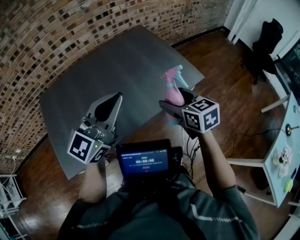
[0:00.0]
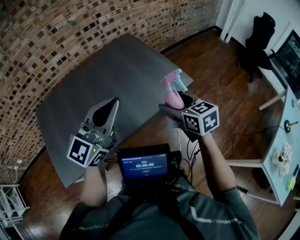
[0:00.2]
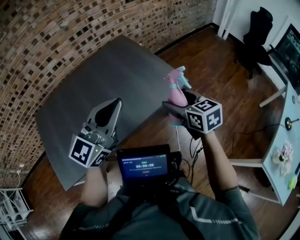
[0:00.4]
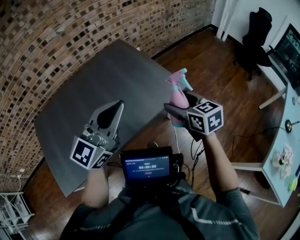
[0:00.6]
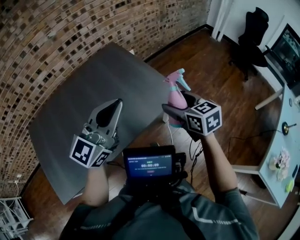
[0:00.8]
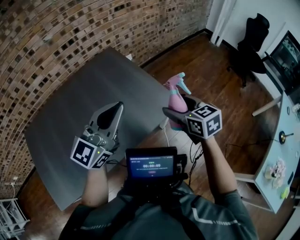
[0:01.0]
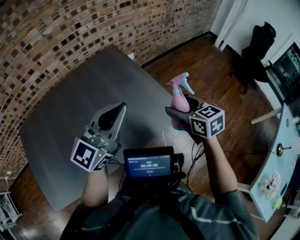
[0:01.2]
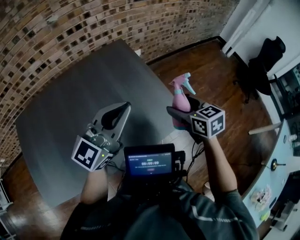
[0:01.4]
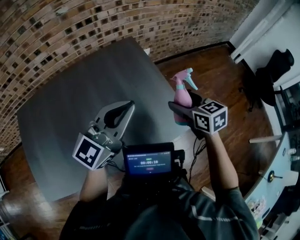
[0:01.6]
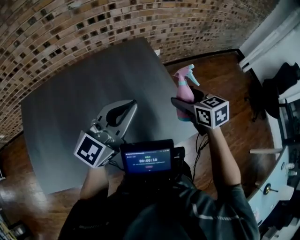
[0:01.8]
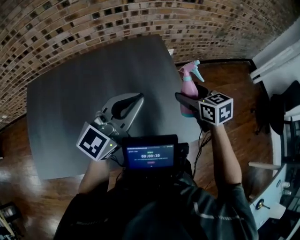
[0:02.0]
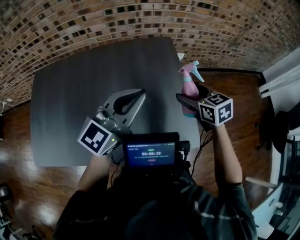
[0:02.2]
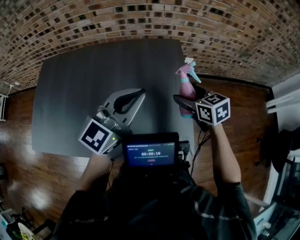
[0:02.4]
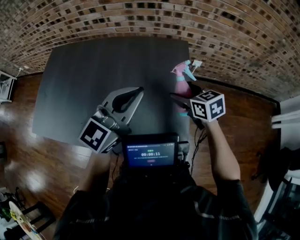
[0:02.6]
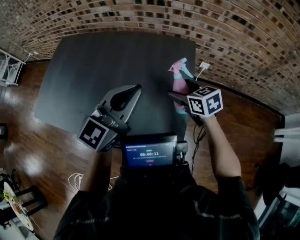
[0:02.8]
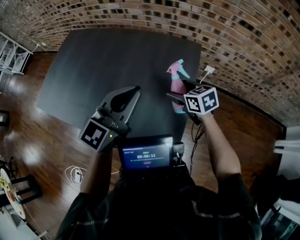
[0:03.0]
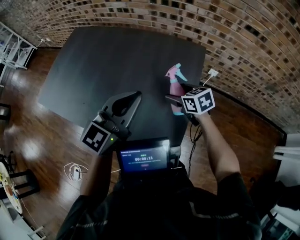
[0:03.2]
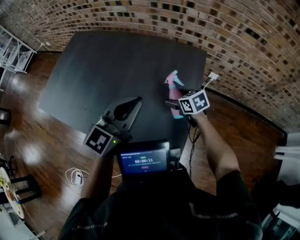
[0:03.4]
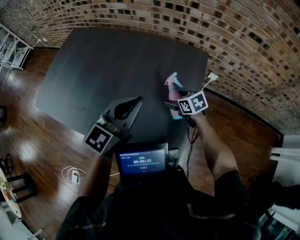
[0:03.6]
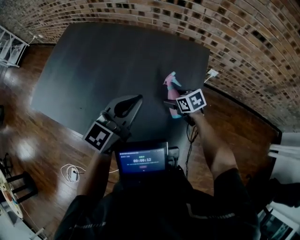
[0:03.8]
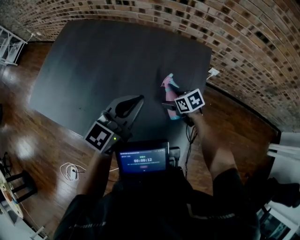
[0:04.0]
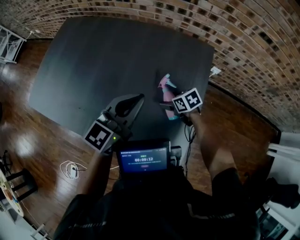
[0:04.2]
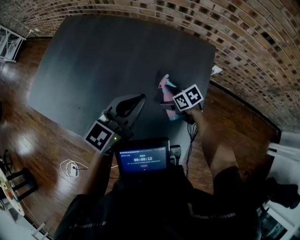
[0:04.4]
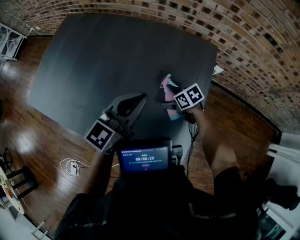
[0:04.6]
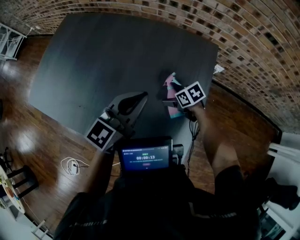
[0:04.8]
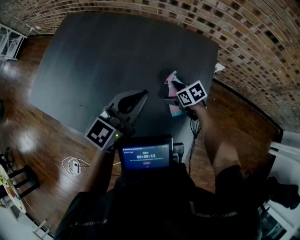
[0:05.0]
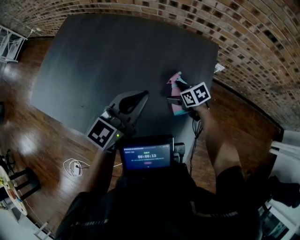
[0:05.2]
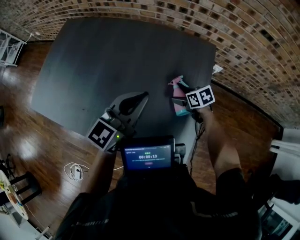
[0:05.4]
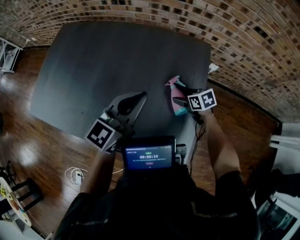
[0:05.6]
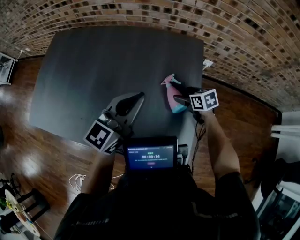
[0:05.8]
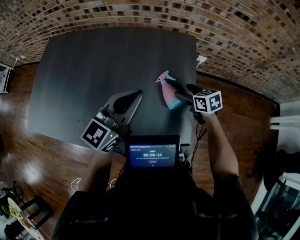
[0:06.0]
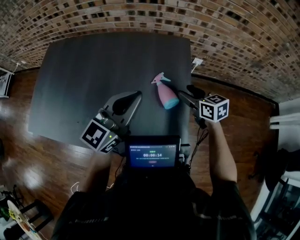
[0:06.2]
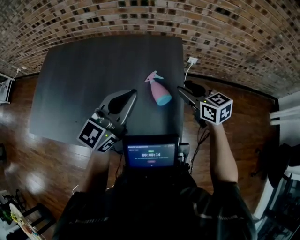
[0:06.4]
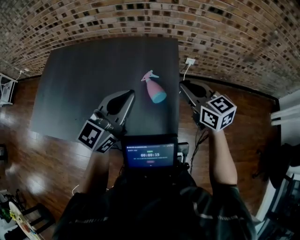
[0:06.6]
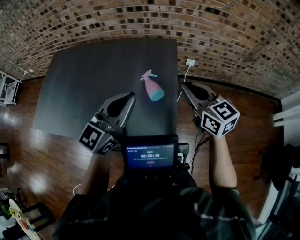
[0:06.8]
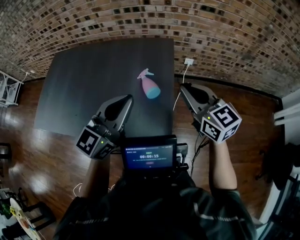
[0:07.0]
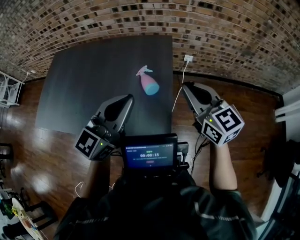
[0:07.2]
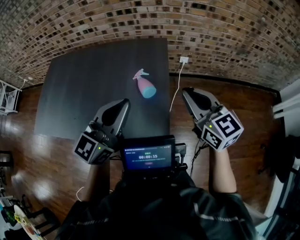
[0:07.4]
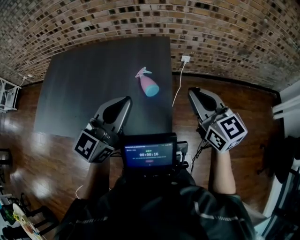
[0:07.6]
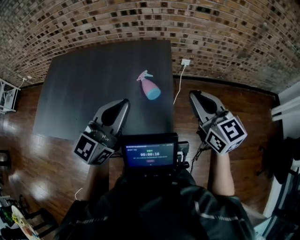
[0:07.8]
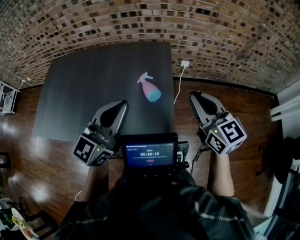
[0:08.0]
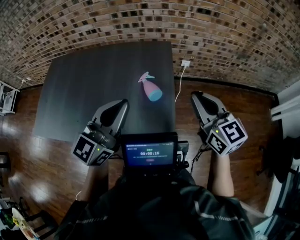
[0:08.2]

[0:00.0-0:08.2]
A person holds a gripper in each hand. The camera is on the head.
0:00.0 to 0:01.6: The two grippers go approximately 30 cm forward.
0:01.6 to 0:03.2: The right gripper shifts by approximately 20 cm, and swivels some 50 degrees. Meanwhile the left gripper shifts by approximately 10 cm, and changes its angle by roughly 50 degrees.
0:03.2 to 0:05.0: The left gripper ends up some 10 cm from where it was. Meanwhile the right gripper heads downward, covering some 15 cm, and turns by some 20 degrees.
0:05.0 to 0:06.6: The right gripper shifts some 30 cm upward, points its fingers about 40 degrees further upward, and closes its fingers. Meanwhile the left gripper ends up roughly 15 cm from where it was.
0:06.6 to 0:08.2: The right gripper moves backward and upward, about 15 cm. The left gripper shifts approximately 10 cm backward.

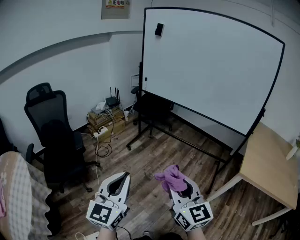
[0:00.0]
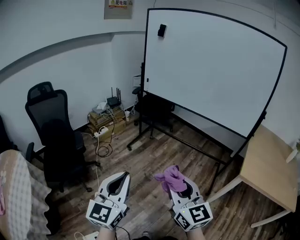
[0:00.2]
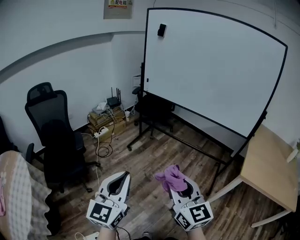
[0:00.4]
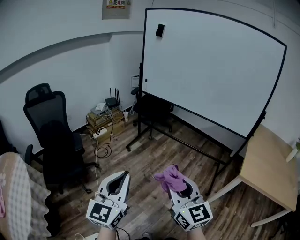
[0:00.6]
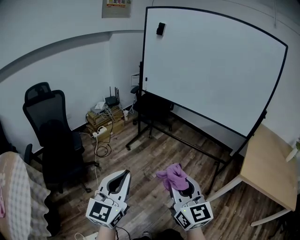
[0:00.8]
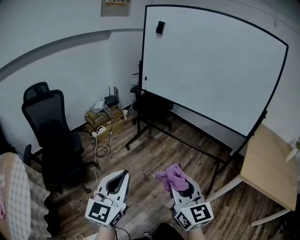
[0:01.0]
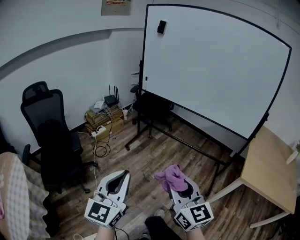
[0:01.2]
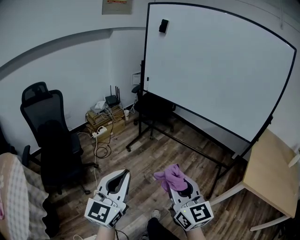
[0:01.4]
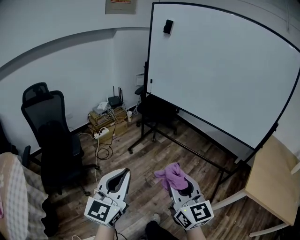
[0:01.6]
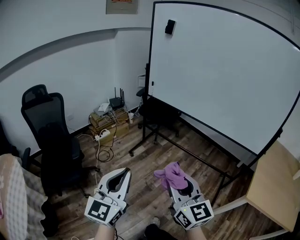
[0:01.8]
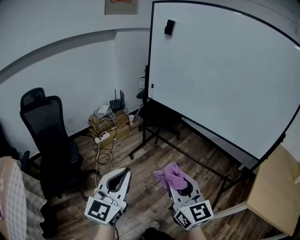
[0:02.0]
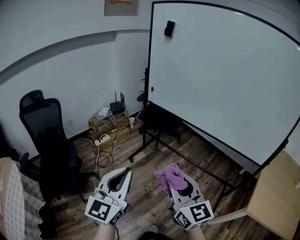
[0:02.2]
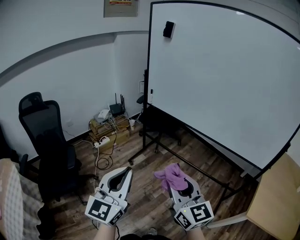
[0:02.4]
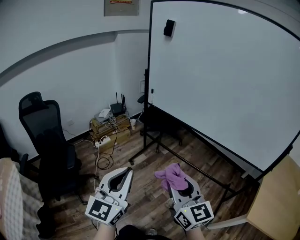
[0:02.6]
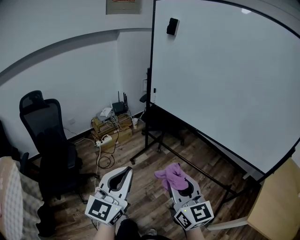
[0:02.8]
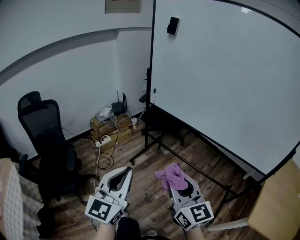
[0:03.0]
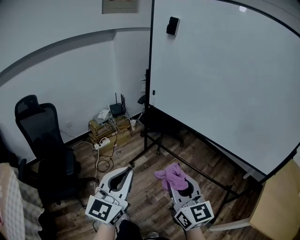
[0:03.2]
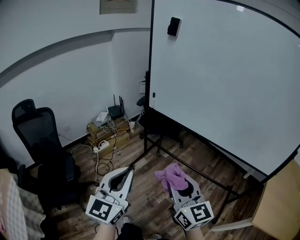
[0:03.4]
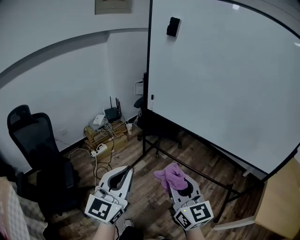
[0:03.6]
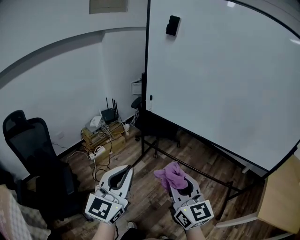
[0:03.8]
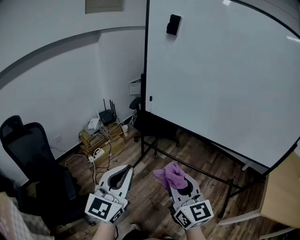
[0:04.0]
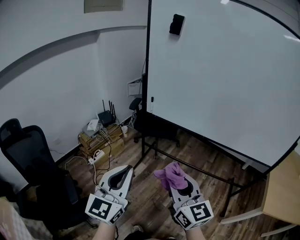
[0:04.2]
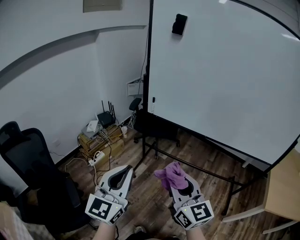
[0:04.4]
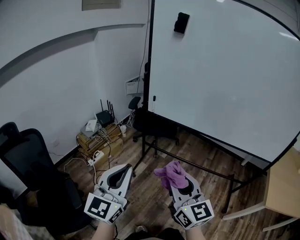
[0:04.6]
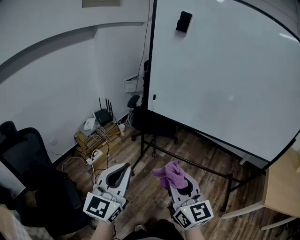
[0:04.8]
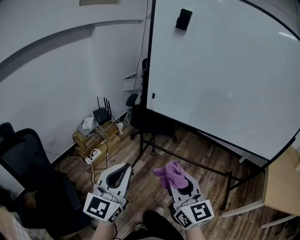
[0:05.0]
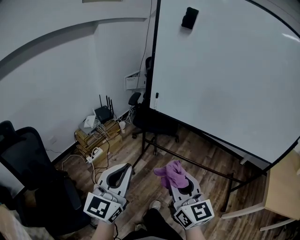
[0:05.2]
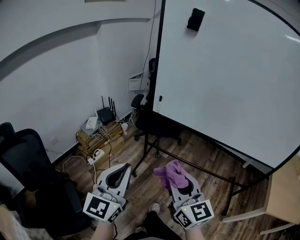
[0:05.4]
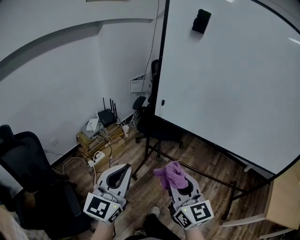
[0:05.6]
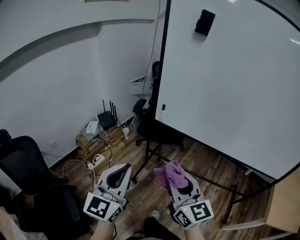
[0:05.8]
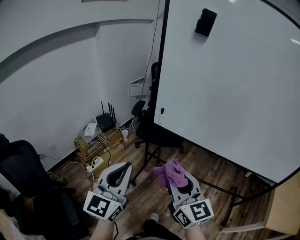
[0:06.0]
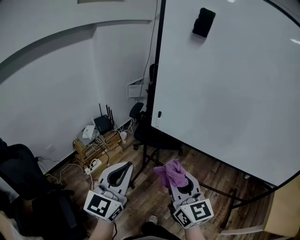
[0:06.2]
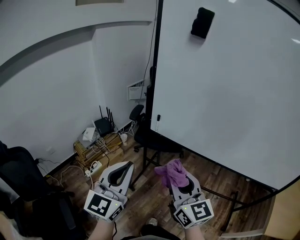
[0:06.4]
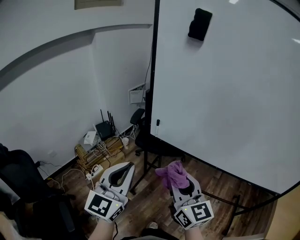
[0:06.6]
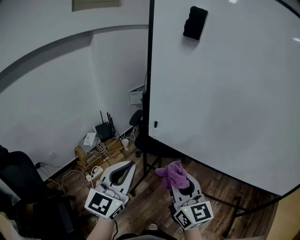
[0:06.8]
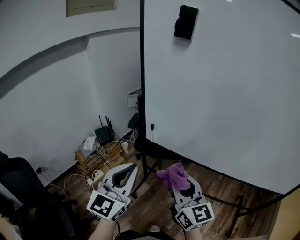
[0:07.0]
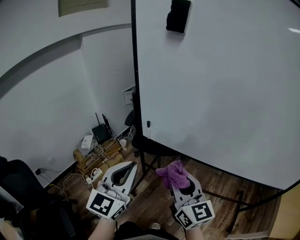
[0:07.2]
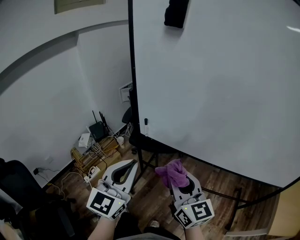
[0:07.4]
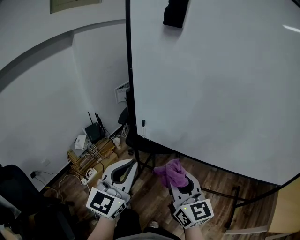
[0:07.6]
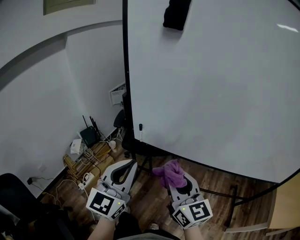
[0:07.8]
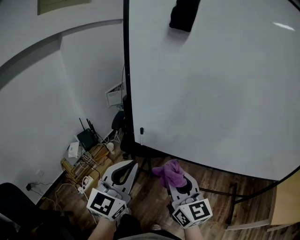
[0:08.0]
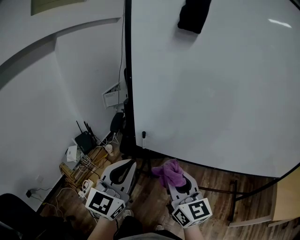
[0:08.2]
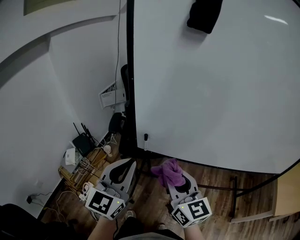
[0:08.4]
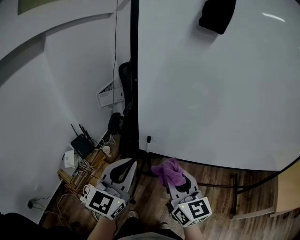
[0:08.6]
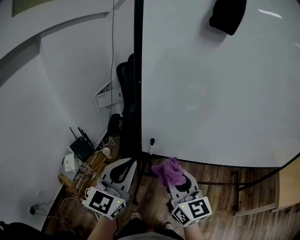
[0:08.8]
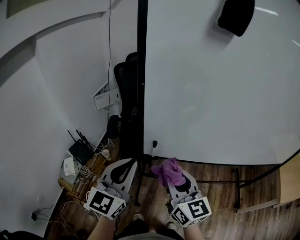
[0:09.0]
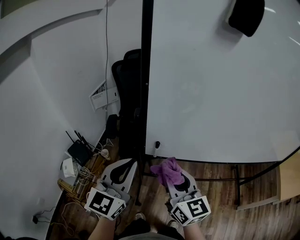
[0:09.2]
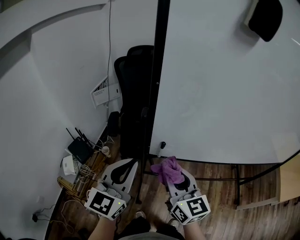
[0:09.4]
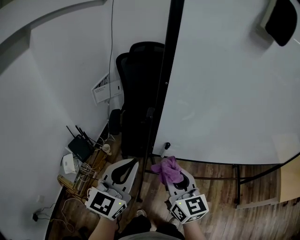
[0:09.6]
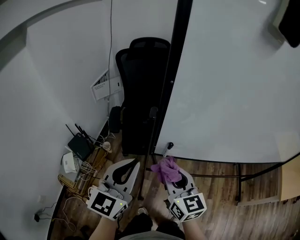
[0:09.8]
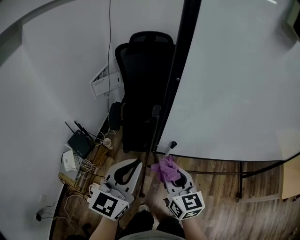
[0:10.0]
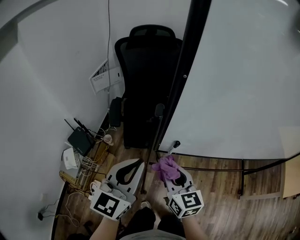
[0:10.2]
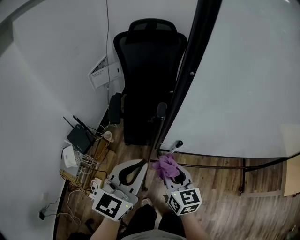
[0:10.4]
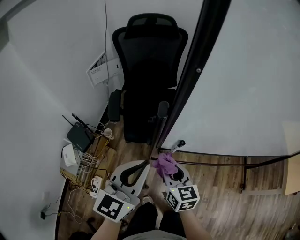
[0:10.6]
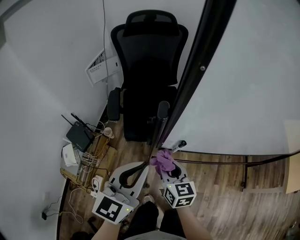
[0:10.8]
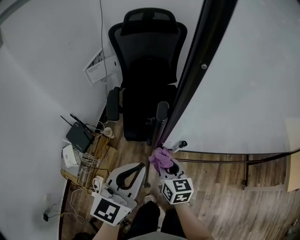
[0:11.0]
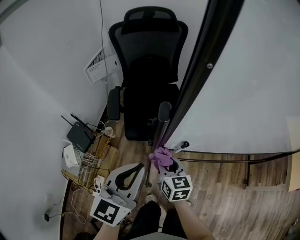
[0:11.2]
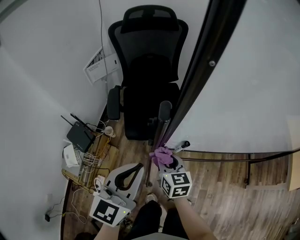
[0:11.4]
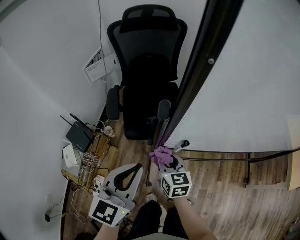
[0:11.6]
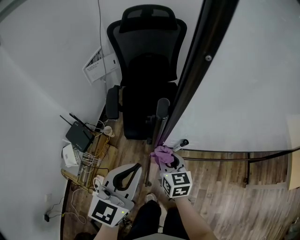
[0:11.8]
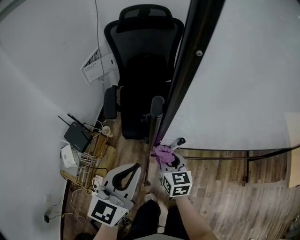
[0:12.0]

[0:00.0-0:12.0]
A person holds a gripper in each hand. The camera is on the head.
0:00.0 to 0:01.6: The two grippers go roughly 15 cm forward.
0:01.6 to 0:03.0: The grippers both shift forward by approximately 20 cm.
0:03.0 to 0:04.4: The right gripper shifts approximately 20 cm to the left and forward; the left gripper travels forward and to the left by roughly 20 cm.
0:04.4 to 0:06.0: Both grippers travel together forward, roughly 15 cm.
0:06.0 to 0:07.6: The grippers both shift forward and to the right by roughly 15 cm.
0:07.6 to 0:09.0: The left gripper goes some 20 cm forward and to the left; the right gripper goes approximately 20 cm to the left and forward.
0:09.0 to 0:10.4: The right gripper moves downward, forward and to the left, approximately 20 cm, and changes its angle by about 20 degrees; the left gripper goes approximately 10 cm downward and forward.
0:10.4 to 0:12.0: The right gripper shifts about 10 cm downward and forward.

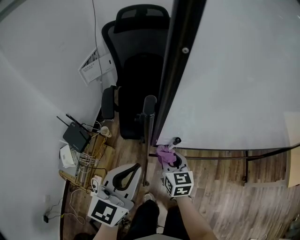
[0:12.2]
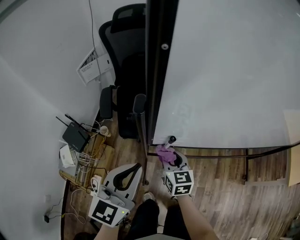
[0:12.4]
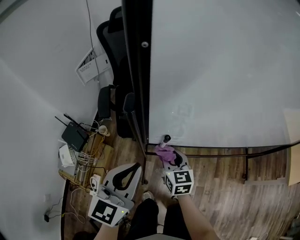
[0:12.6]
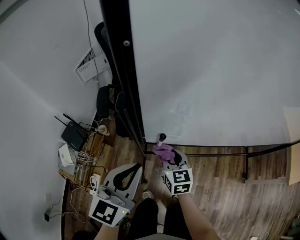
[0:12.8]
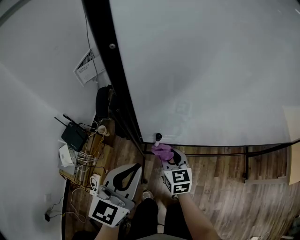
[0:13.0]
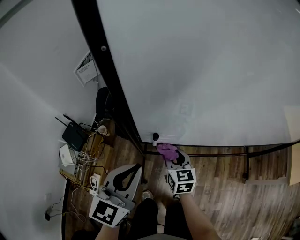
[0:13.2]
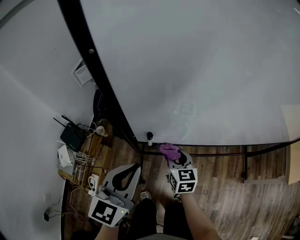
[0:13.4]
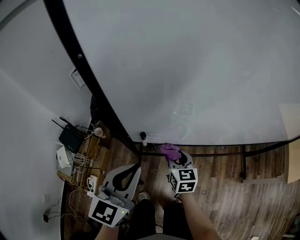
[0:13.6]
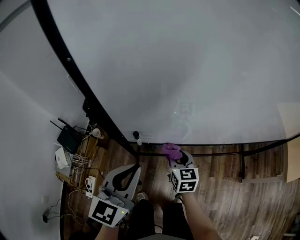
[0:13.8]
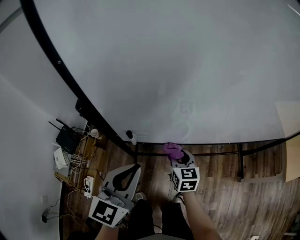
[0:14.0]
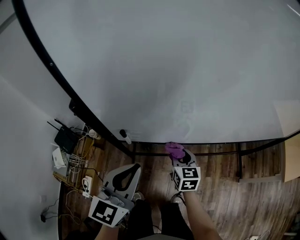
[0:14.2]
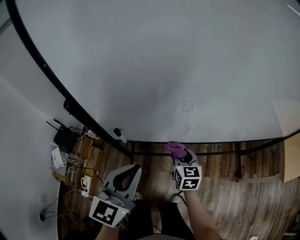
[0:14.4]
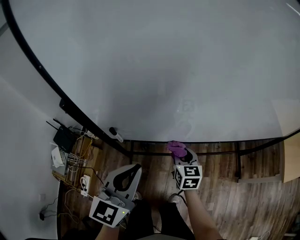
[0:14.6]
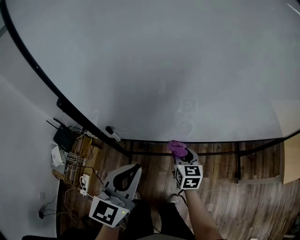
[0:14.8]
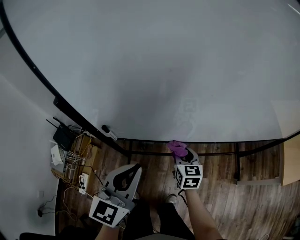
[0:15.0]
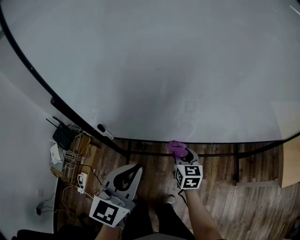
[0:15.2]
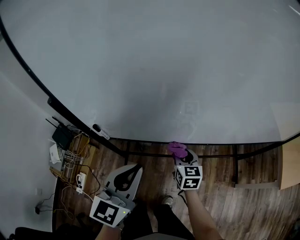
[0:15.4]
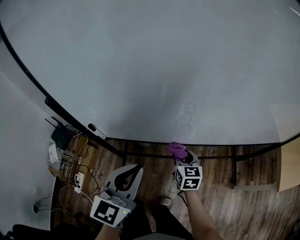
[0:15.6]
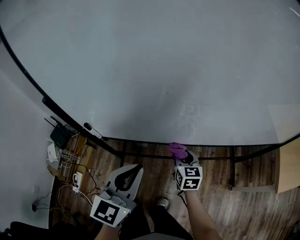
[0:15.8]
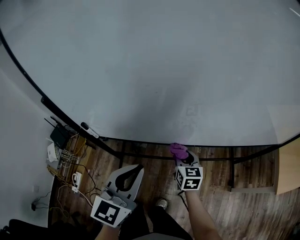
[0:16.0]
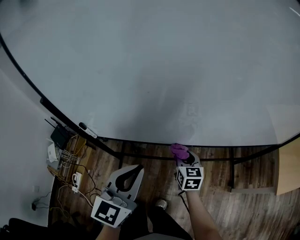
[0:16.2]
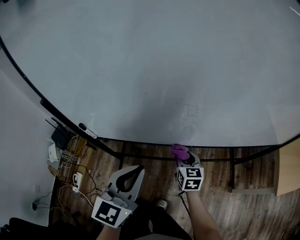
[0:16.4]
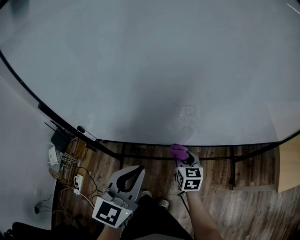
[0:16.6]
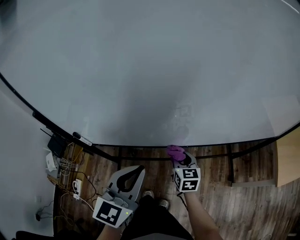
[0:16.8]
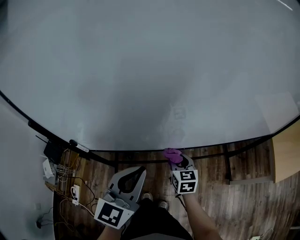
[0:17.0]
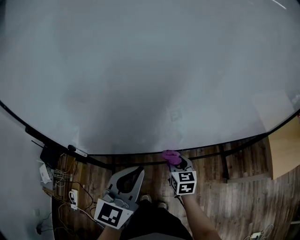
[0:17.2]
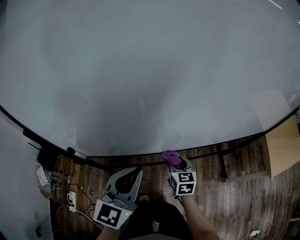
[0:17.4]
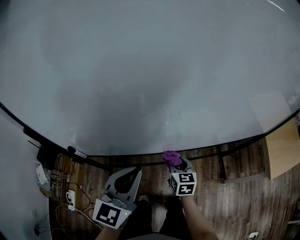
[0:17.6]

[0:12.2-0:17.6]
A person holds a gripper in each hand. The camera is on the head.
0:12.2 to 0:13.6: Both grippers travel together to the right, about 10 cm.
0:13.6 to 0:15.0: The grippers both shift to the right by approximately 15 cm.
0:15.0 to 0:16.2: The grippers both shift to the right by roughly 15 cm.
0:16.2 to 0:17.6: The grippers move only a little.
